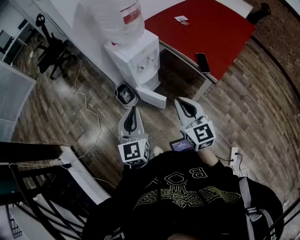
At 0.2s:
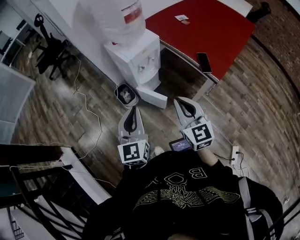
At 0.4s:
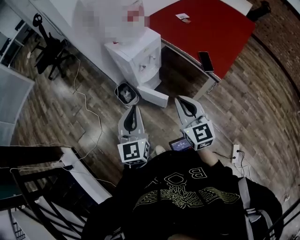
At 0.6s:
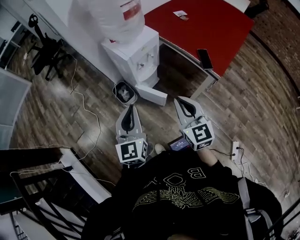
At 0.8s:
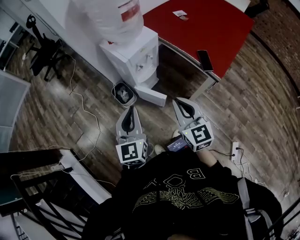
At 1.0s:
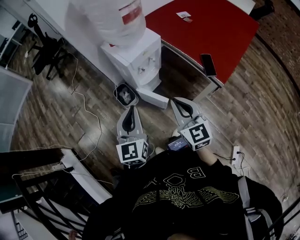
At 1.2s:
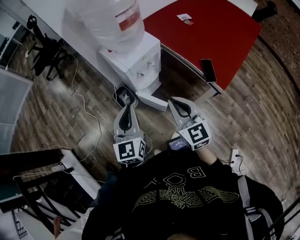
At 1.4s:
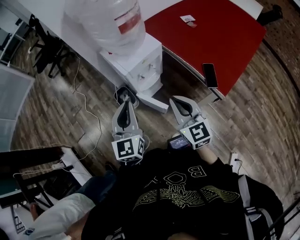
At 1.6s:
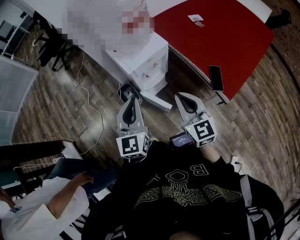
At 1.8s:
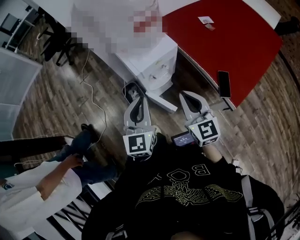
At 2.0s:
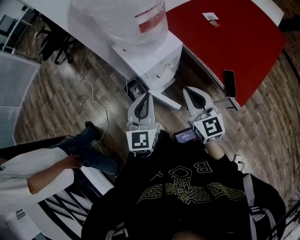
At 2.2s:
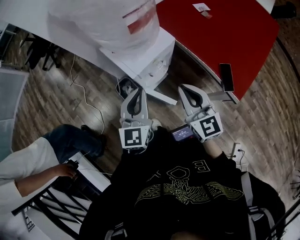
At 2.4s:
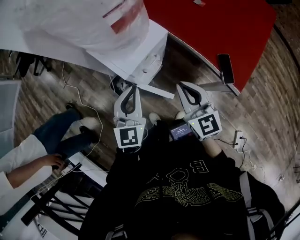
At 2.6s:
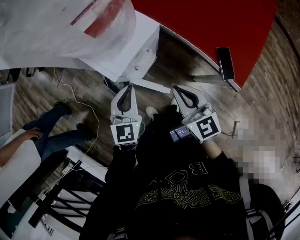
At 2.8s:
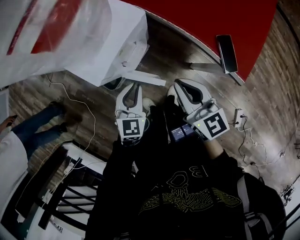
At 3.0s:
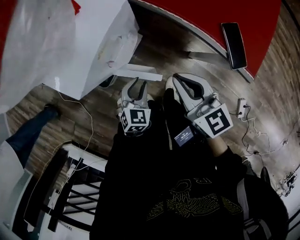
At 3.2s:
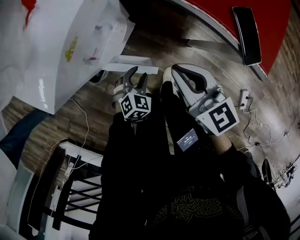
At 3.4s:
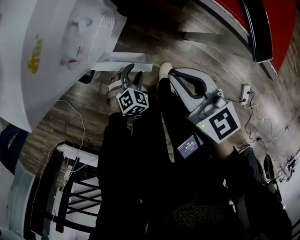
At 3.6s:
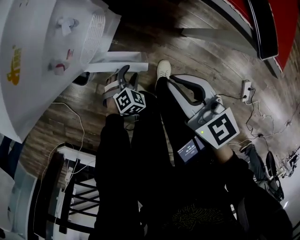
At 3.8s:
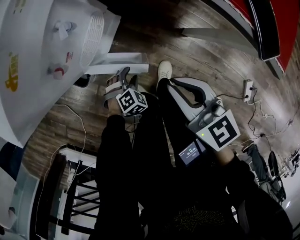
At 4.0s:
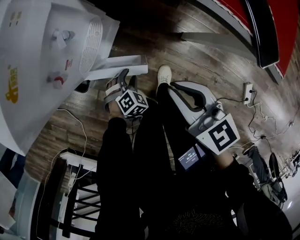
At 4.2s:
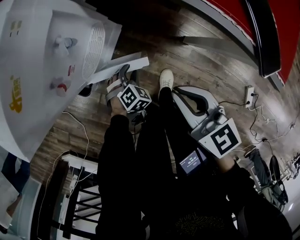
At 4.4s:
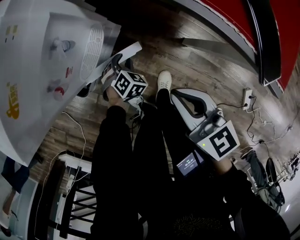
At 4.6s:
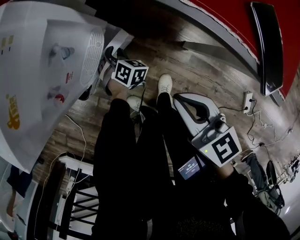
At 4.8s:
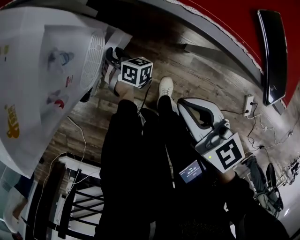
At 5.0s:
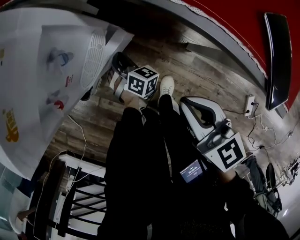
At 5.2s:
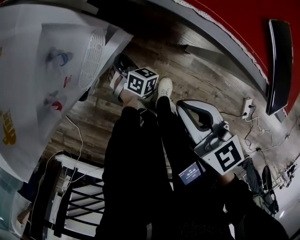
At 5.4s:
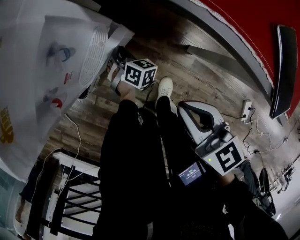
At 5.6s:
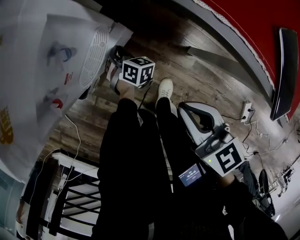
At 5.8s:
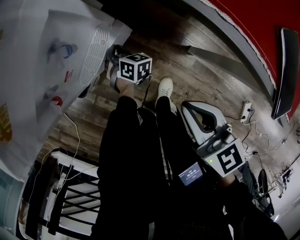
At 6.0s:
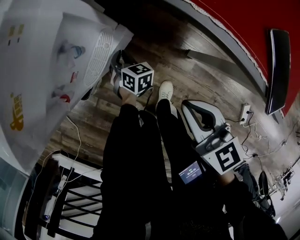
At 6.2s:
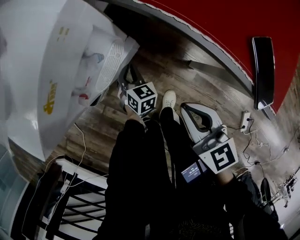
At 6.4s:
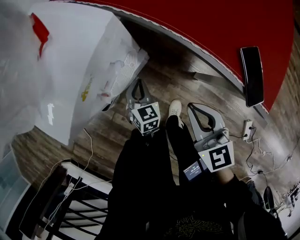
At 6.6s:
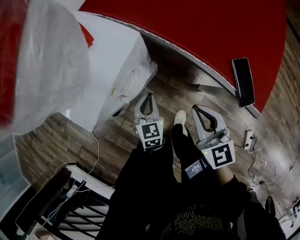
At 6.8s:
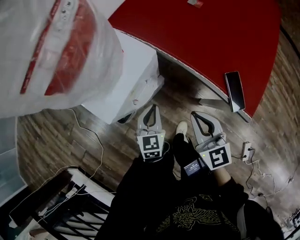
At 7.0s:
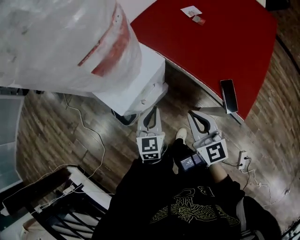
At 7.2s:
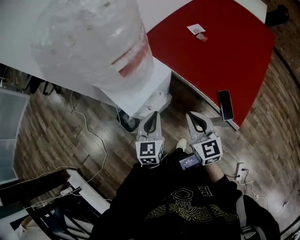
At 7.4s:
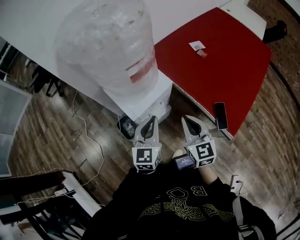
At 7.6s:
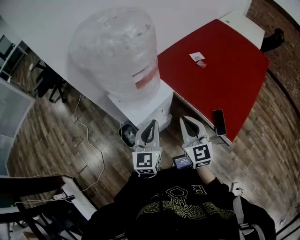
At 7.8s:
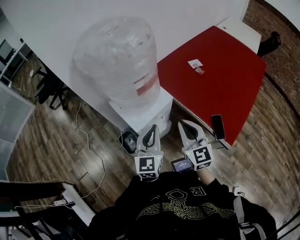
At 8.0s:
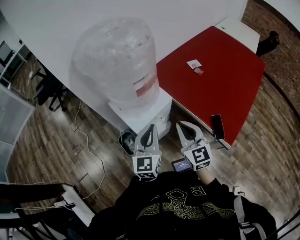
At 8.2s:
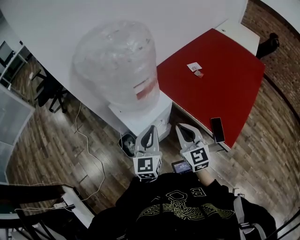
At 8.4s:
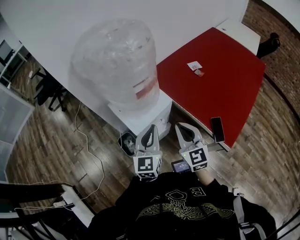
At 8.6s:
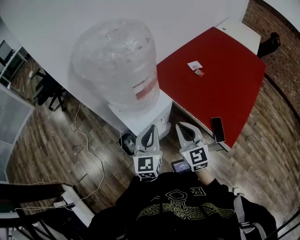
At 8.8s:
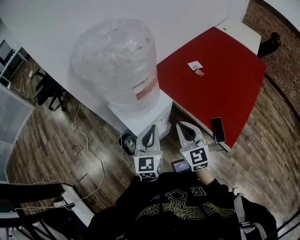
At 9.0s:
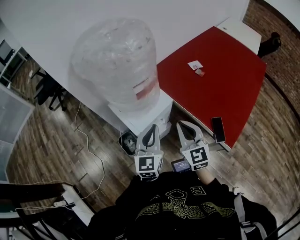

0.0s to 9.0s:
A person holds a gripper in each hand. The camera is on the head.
0.0s to 1.6s: Both grippers travel together forward, roughly 15 cm.
1.6s to 3.0s: The left gripper moves downward, roughly 40 cm, tilts its fingers roughly 40 degrees downward, and opens its fingers, while the right gripper travels downward and forward by roughly 25 cm.
3.0s to 4.4s: The left gripper travels downward by about 25 cm, and changes its angle by about 30 degrees, while the right gripper heads downward, covering some 15 cm.
4.4s to 6.0s: The left gripper travels forward by about 10 cm, changes its angle by some 40 degrees, and closes its fingers.
6.0s to 7.6s: The left gripper is displaced upward by some 60 cm, and points its fingers approximately 50 degrees further upward. Meanwhile the right gripper moves upward, some 35 cm, and swivels roughly 30 degrees.
7.6s to 9.0s: The grippers stay close to where they were, moving slightly.

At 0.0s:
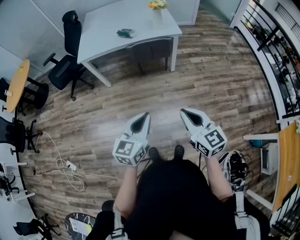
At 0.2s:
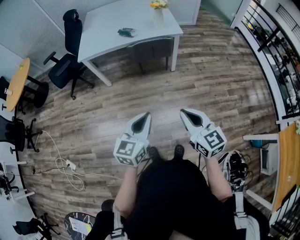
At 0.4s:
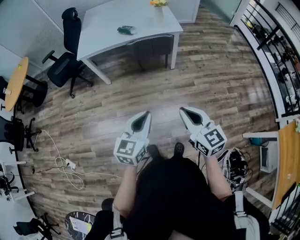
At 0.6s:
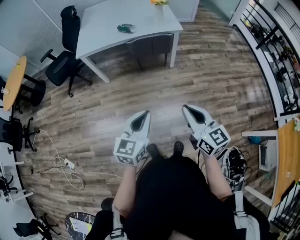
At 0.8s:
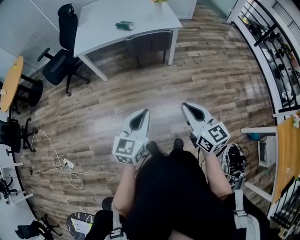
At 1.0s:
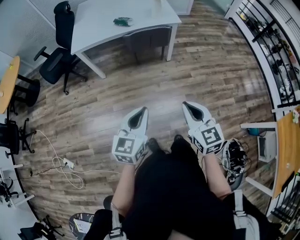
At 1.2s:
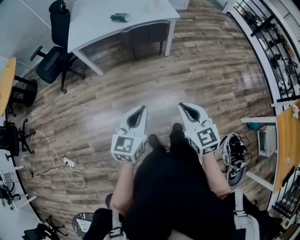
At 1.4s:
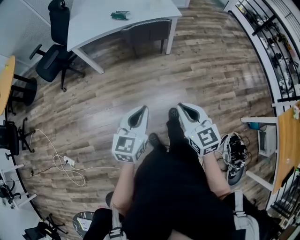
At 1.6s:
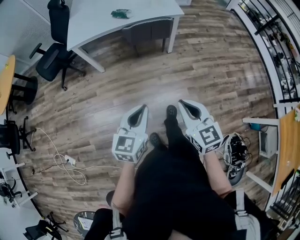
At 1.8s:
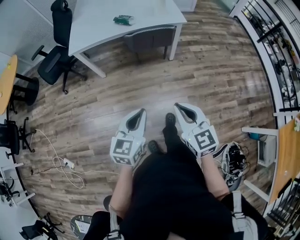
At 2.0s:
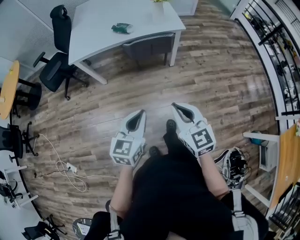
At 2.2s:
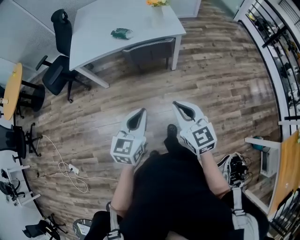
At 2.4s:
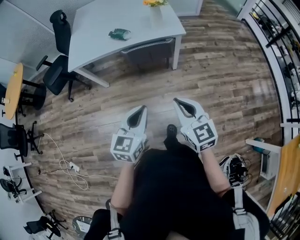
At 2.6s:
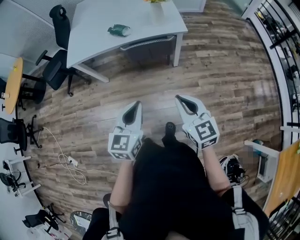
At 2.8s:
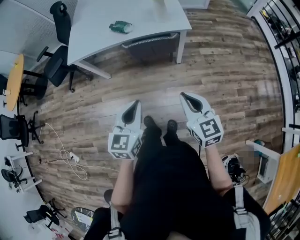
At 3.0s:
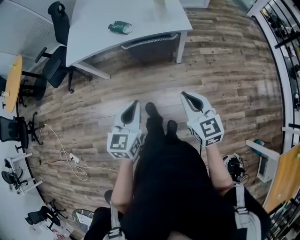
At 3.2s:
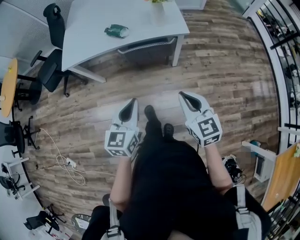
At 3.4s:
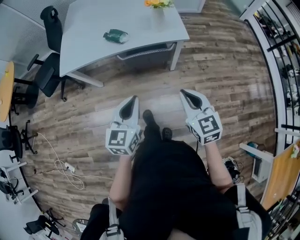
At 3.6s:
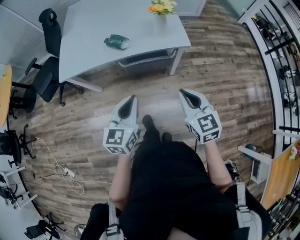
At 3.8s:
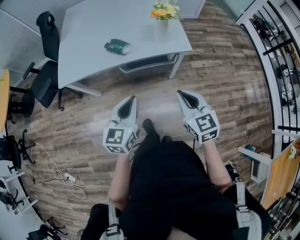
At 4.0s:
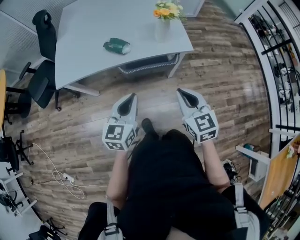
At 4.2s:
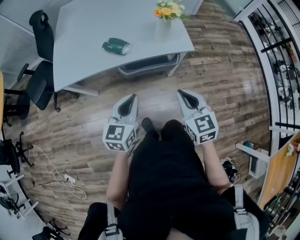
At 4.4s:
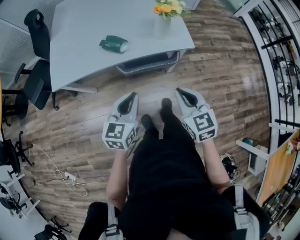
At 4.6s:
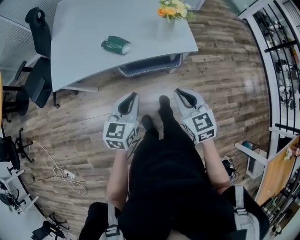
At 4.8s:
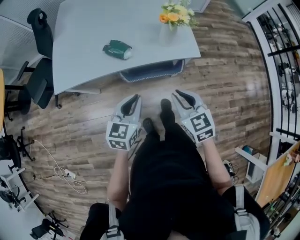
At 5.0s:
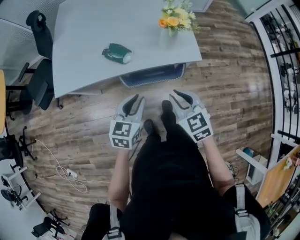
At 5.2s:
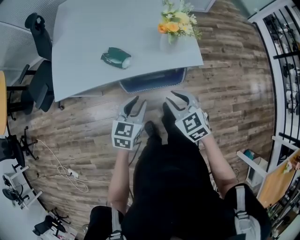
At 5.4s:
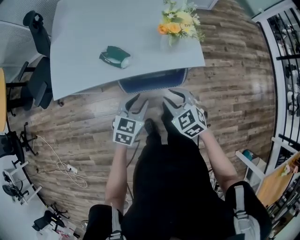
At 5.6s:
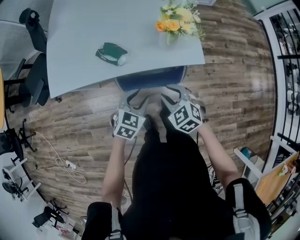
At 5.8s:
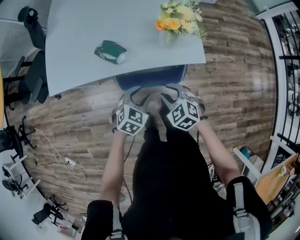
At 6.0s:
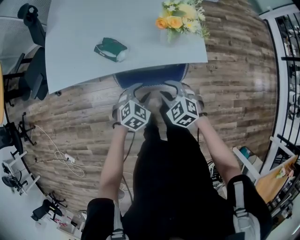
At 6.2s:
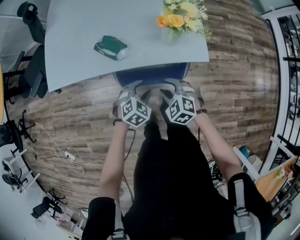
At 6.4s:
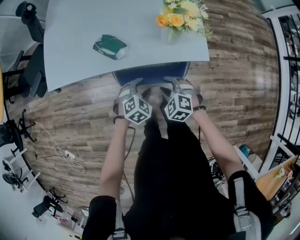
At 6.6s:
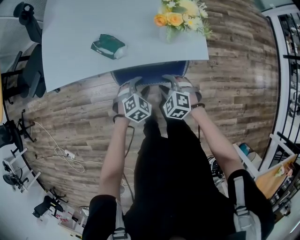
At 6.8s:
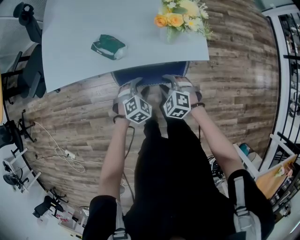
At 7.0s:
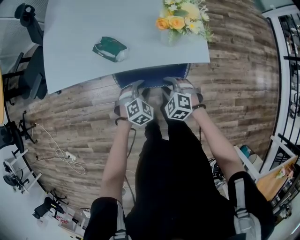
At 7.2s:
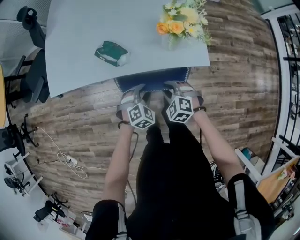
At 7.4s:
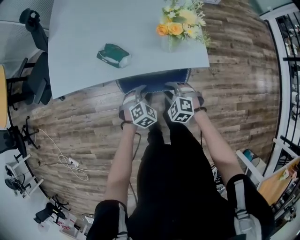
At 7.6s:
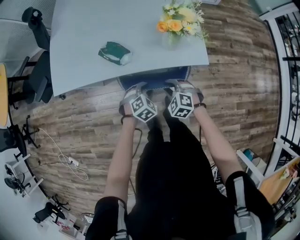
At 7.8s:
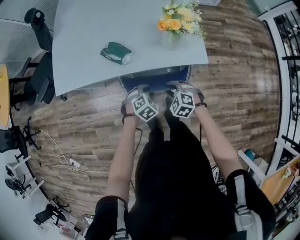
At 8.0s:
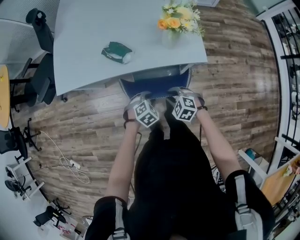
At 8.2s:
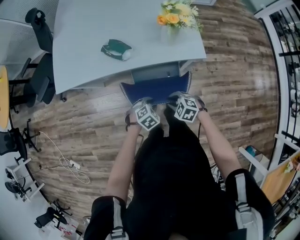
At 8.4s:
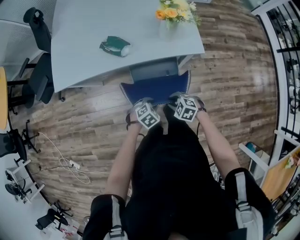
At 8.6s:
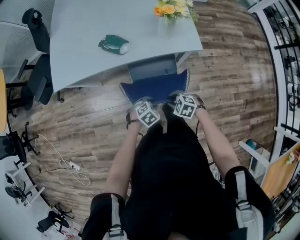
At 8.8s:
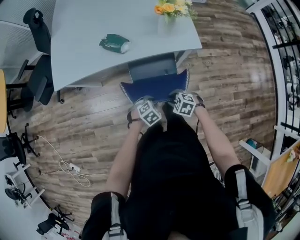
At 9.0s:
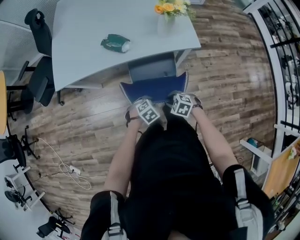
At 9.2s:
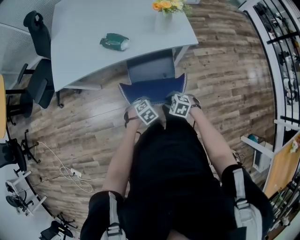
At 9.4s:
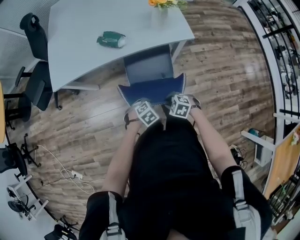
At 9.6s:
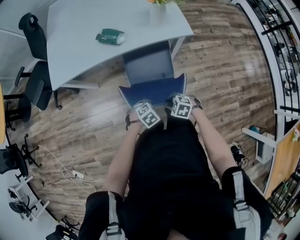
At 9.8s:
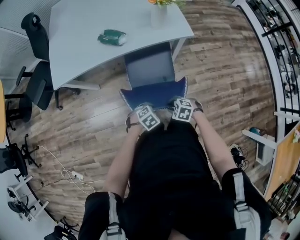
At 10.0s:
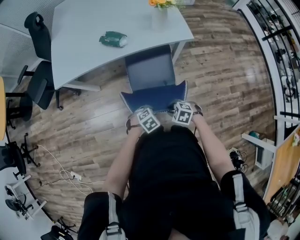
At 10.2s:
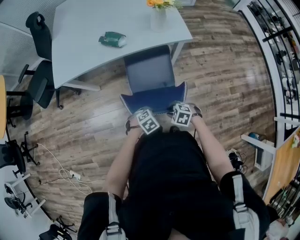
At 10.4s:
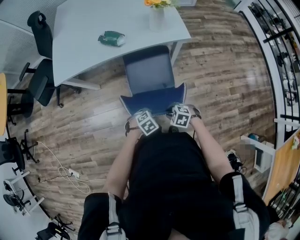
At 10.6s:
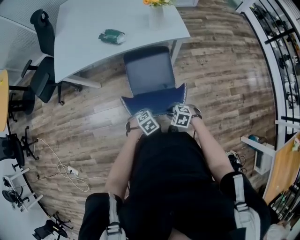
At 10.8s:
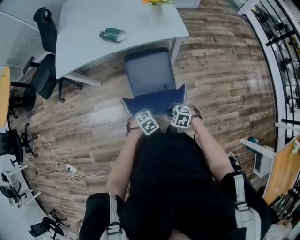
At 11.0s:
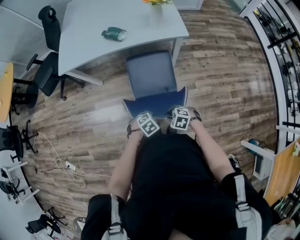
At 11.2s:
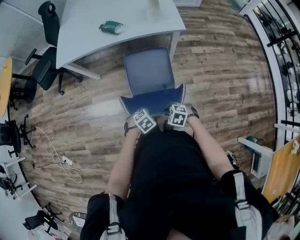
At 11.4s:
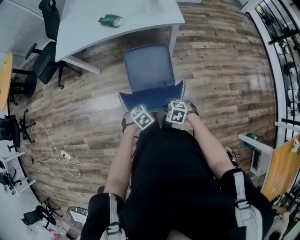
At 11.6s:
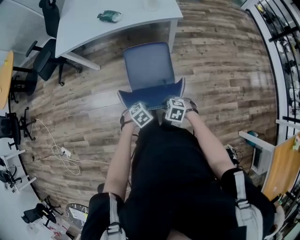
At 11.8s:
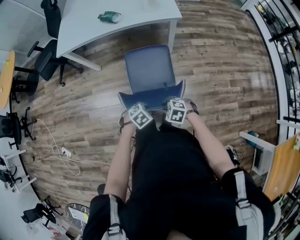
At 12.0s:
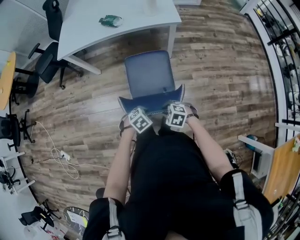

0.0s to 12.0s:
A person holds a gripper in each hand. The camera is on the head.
0.0s to 1.6s: Both grippers travel together to the left, roughly 5 cm.
1.6s to 3.0s: The two grippers go about 25 cm forward and to the right.
3.0s to 4.4s: The grippers both shift forward by some 20 cm.
4.4s to 6.0s: The right gripper travels downward and forward by some 20 cm, rotates roughly 40 degrees, and opens; the left gripper travels downward, forward and to the right by some 25 cm, tilts its fingers about 30 degrees downward, and opens up.
6.0s to 7.6s: The two grippers go roughly 5 cm downward.
7.6s to 9.0s: The left gripper moves approximately 20 cm; the right gripper changes place by some 20 cm, and changes its angle by some 20 degrees.
9.0s to 10.4s: The left gripper ends up about 15 cm from where it was. The right gripper changes place by roughly 15 cm.
10.4s to 12.0s: The right gripper shifts by about 15 cm, while the left gripper shifts by roughly 15 cm.

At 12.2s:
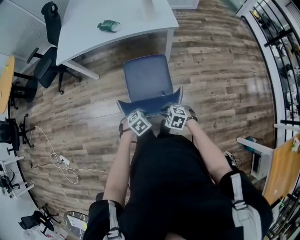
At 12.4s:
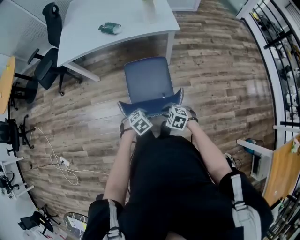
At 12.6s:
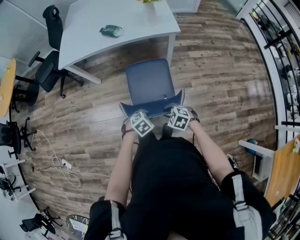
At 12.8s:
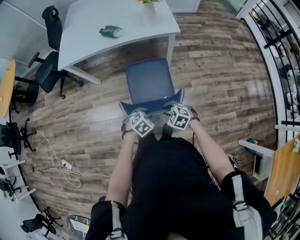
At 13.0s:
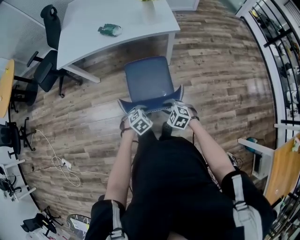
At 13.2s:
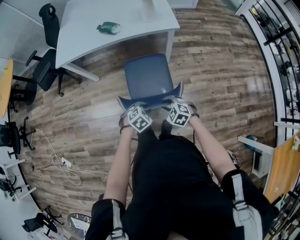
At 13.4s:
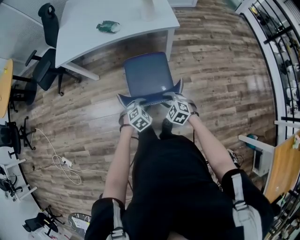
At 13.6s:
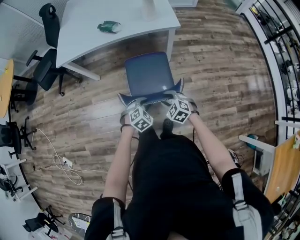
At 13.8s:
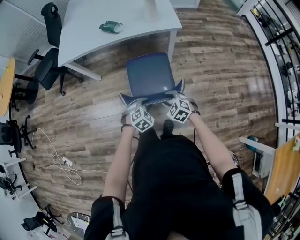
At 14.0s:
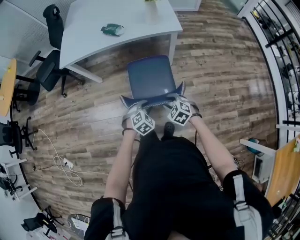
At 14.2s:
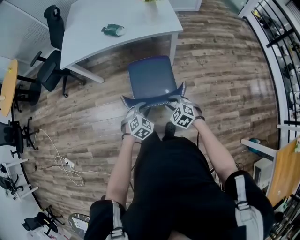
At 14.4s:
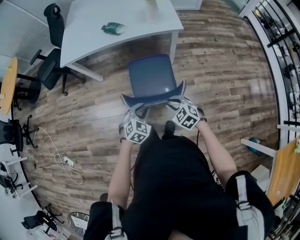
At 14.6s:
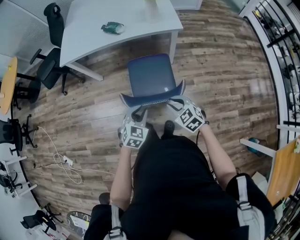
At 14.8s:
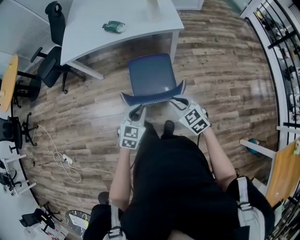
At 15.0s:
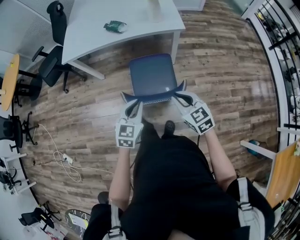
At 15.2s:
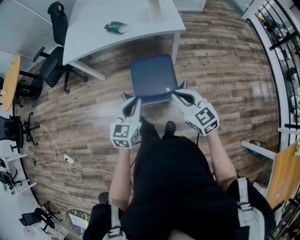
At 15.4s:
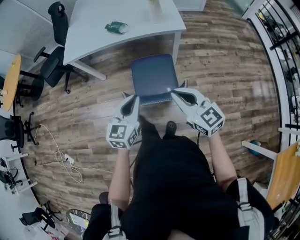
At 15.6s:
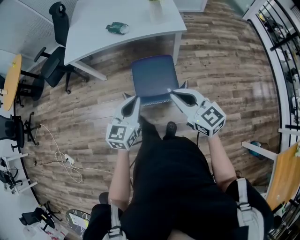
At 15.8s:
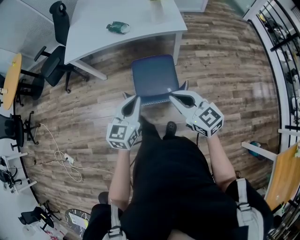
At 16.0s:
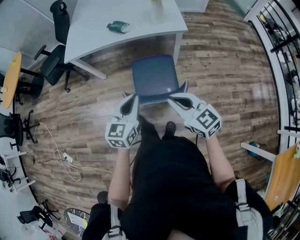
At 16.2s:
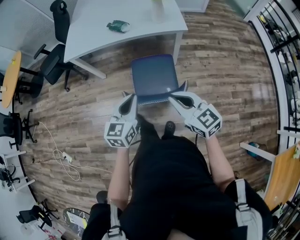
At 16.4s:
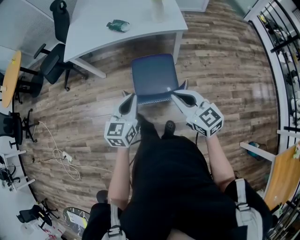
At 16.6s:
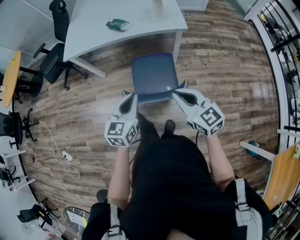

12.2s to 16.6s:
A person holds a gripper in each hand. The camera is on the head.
12.2s to 13.6s: The right gripper ends up roughly 10 cm from where it was; the left gripper shifts by approximately 10 cm, and swivels approximately 20 degrees.
13.6s to 15.2s: Both grippers travel together upward, approximately 20 cm. The right gripper tips its fingers upward by some 30 degrees, and closes its fingers, while the left gripper tips its fingers upward by roughly 40 degrees.
15.2s to 16.6s: The grippers move only a little.
